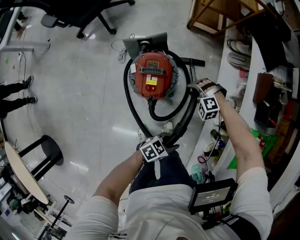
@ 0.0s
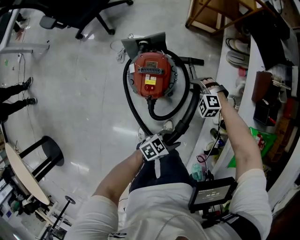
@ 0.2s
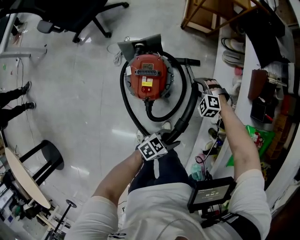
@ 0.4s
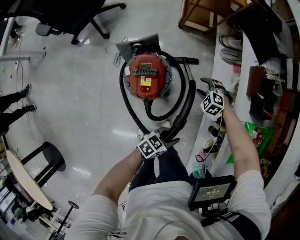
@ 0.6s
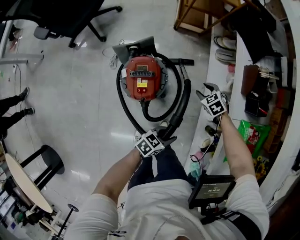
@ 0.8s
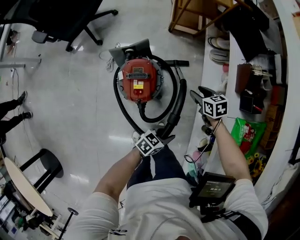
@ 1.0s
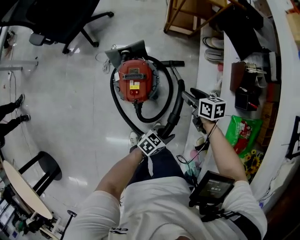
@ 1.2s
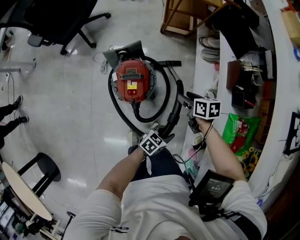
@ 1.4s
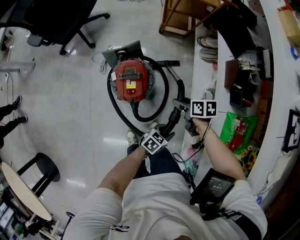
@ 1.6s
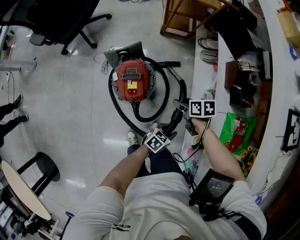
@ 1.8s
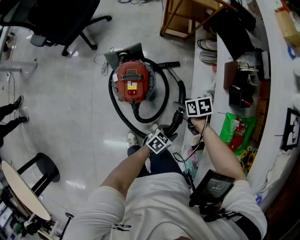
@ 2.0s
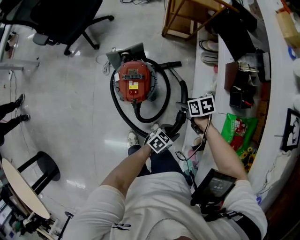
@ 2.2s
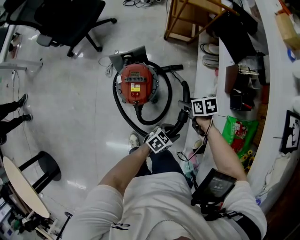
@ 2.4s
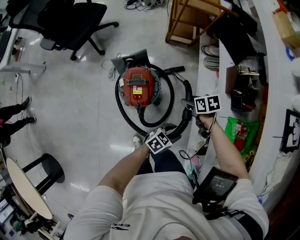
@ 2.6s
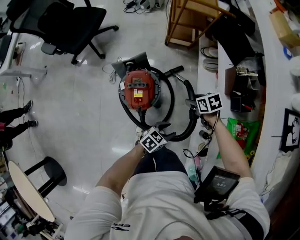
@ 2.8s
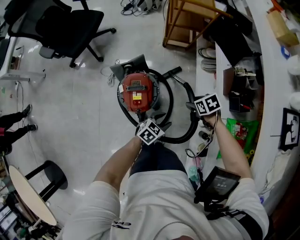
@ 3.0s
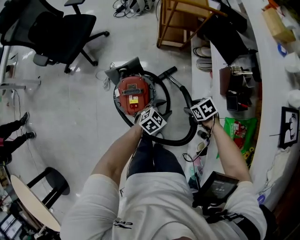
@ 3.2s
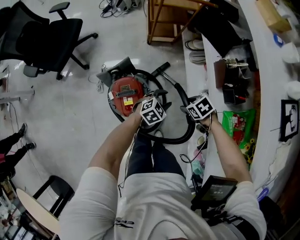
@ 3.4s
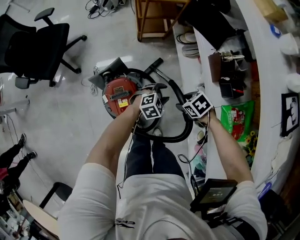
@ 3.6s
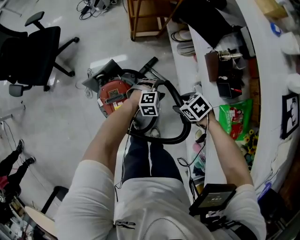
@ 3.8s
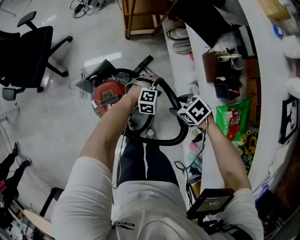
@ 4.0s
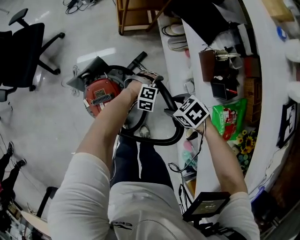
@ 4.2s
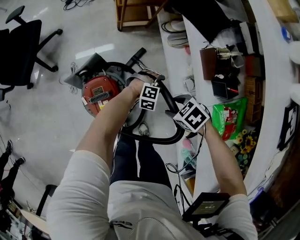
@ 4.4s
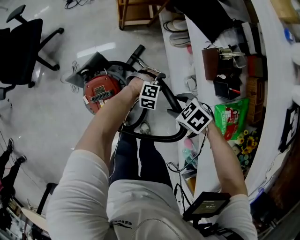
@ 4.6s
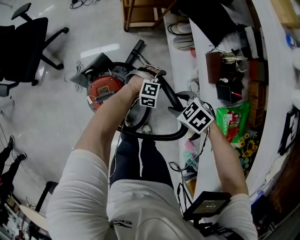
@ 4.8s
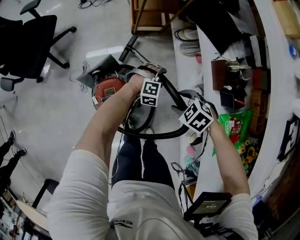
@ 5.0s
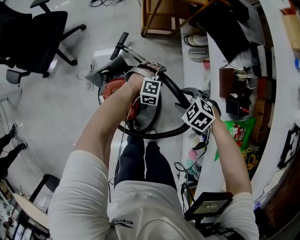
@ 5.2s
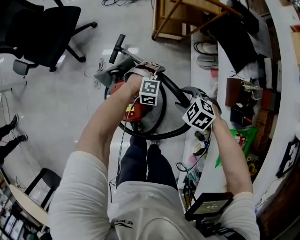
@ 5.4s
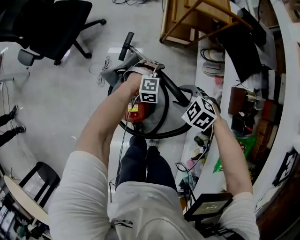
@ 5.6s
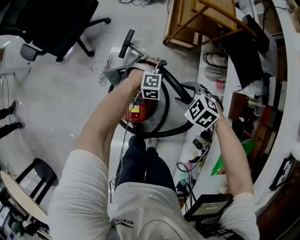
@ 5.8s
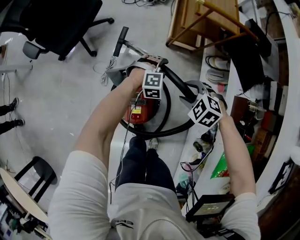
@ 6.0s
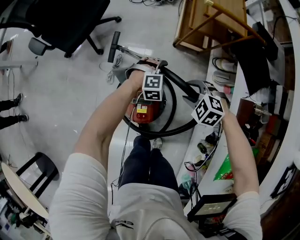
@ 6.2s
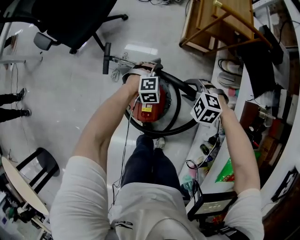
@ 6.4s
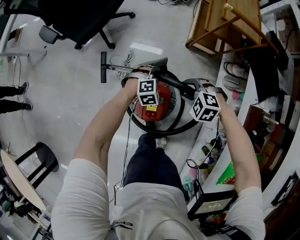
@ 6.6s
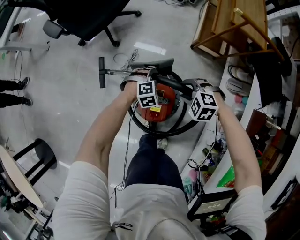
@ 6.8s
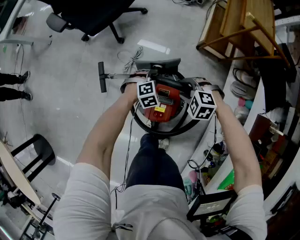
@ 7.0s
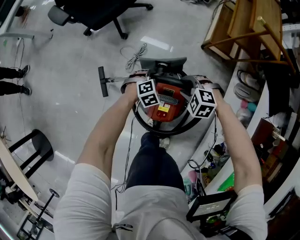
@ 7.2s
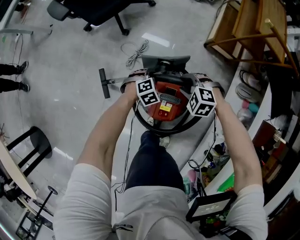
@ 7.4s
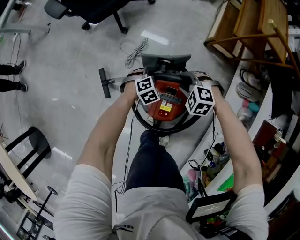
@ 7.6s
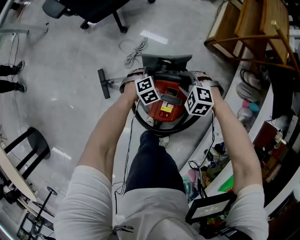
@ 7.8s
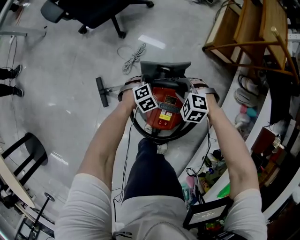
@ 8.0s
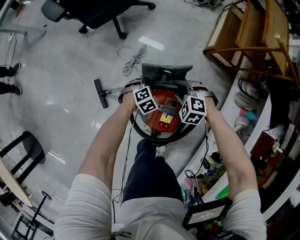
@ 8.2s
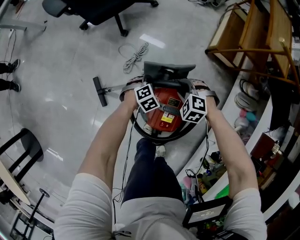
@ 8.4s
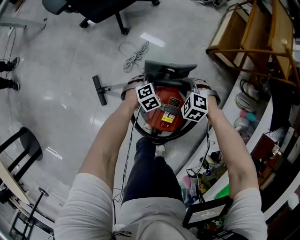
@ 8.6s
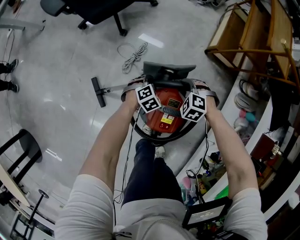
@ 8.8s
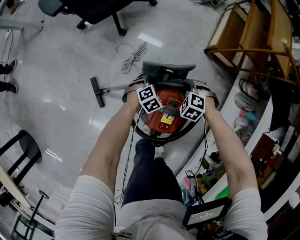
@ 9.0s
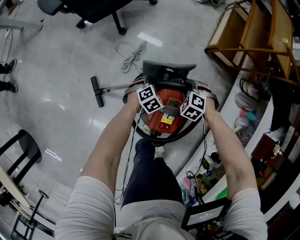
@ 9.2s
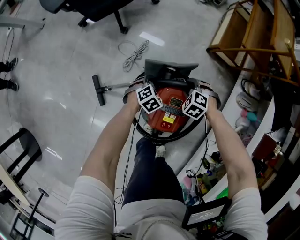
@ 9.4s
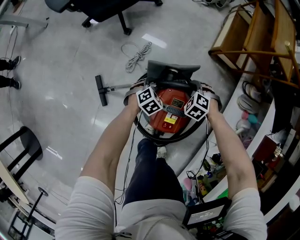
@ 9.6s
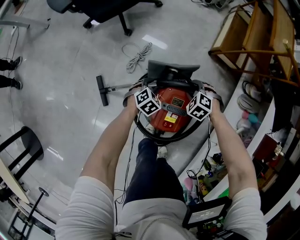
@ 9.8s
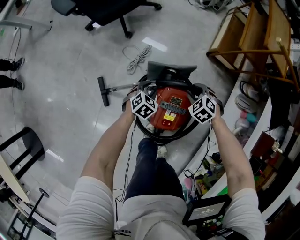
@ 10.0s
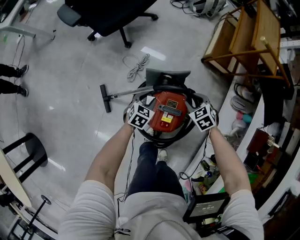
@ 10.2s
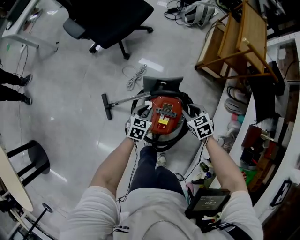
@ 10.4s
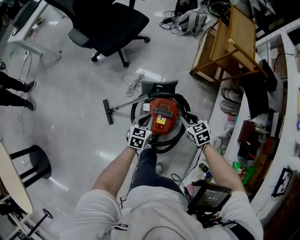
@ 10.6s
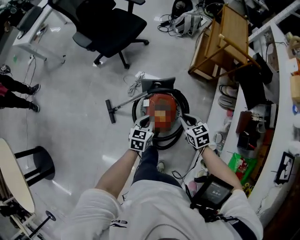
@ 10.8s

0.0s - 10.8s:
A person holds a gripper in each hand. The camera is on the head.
0.0s - 1.6s: The left gripper shifts by some 5 cm. The right gripper moves upward, roughly 15 cm, rolls clockwise, seen from behind, by approximately 120 degrees, and opens.
1.6s - 3.0s: The right gripper ends up about 5 cm from where it was, and changes its angle by about 30 degrees, while the left gripper moves roughly 10 cm.
3.0s - 4.6s: The left gripper moves about 25 cm, and twists some 70 degrees clockwise, seen from behind.
4.6s - 6.2s: The left gripper ends up about 30 cm from where it was, and swivels roughly 30 degrees. Meanwhile the right gripper shifts by about 25 cm, and rolls counterclockwise, seen from behind, by roughly 50 degrees.
6.2s - 7.8s: Both grippers move to the left and downward, roughly 25 cm. The left gripper rotates approximately 40 degrees. Meanwhile the right gripper rotates approximately 20 degrees.
7.8s - 9.2s: The left gripper is displaced downward by approximately 5 cm. Meanwhile the right gripper travels downward by roughly 10 cm.
9.2s - 10.8s: Both grippers move upward, some 30 cm. The left gripper tips its fingers upward by some 30 degrees, and closes up. Meanwhile the right gripper rotates around the line of its fingers by some 50 degrees, clockwise from behind, and closes.

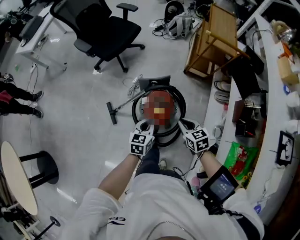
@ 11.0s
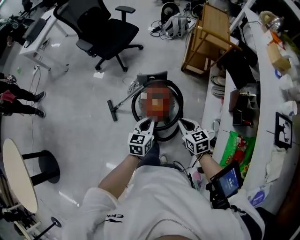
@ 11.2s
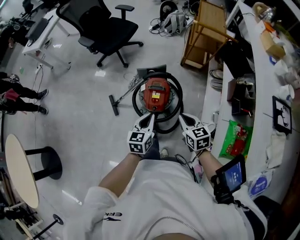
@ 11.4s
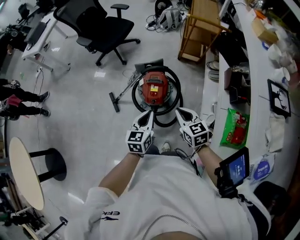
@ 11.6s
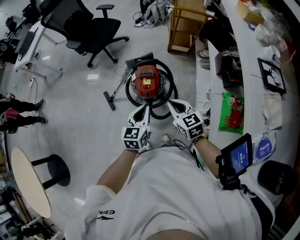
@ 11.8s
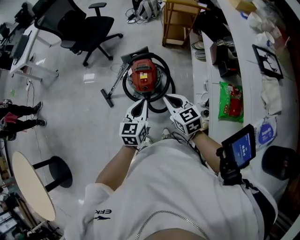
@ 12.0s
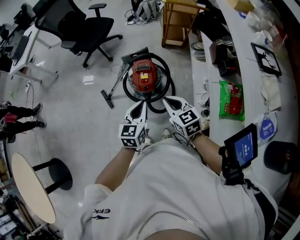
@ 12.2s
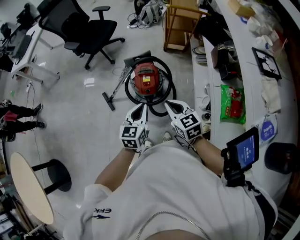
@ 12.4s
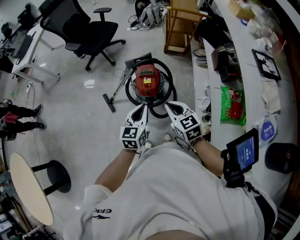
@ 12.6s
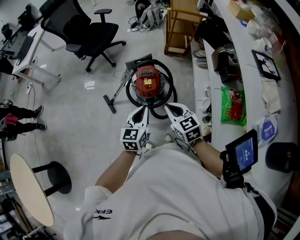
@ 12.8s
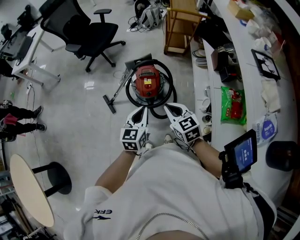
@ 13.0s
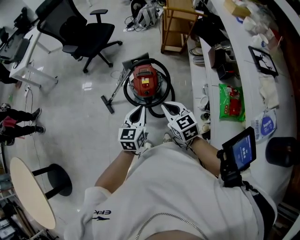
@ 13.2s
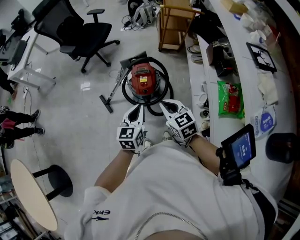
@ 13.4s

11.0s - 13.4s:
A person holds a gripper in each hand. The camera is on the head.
11.0s - 12.2s: The two grippers go about 25 cm backward and upward.
12.2s - 13.4s: The grippers make only small movements.

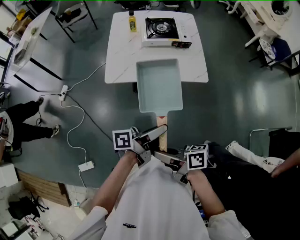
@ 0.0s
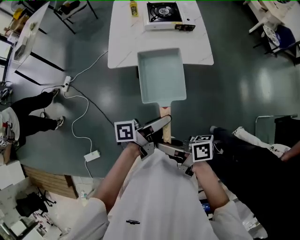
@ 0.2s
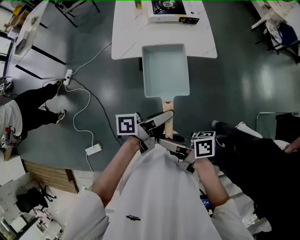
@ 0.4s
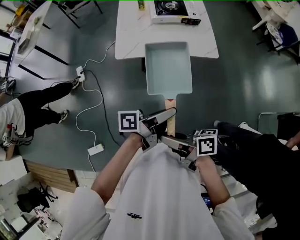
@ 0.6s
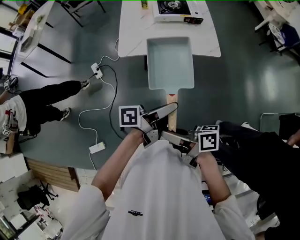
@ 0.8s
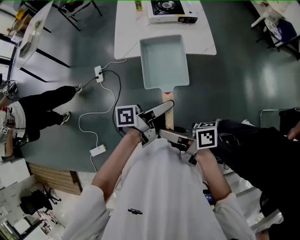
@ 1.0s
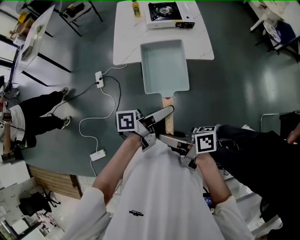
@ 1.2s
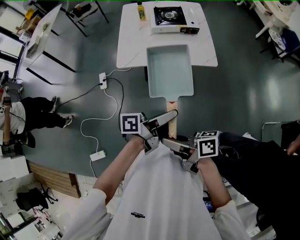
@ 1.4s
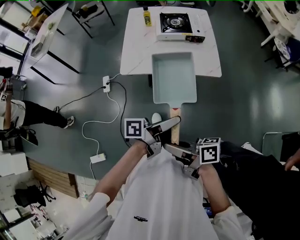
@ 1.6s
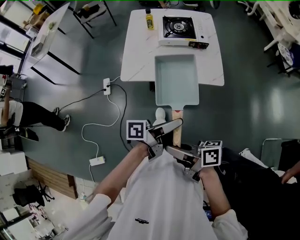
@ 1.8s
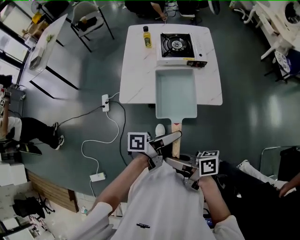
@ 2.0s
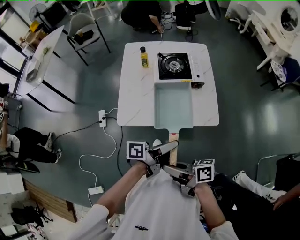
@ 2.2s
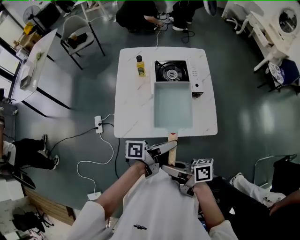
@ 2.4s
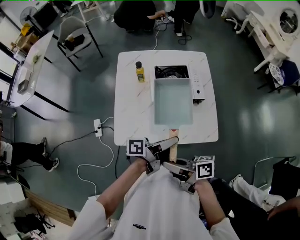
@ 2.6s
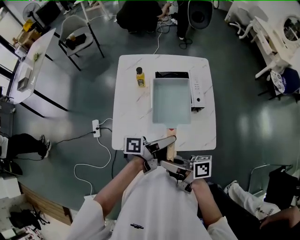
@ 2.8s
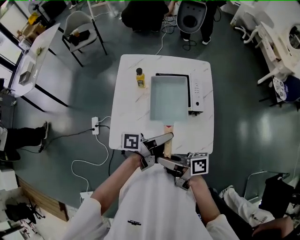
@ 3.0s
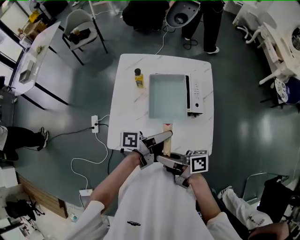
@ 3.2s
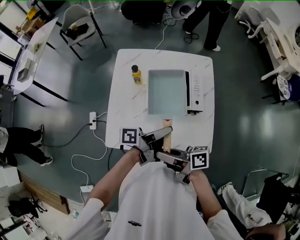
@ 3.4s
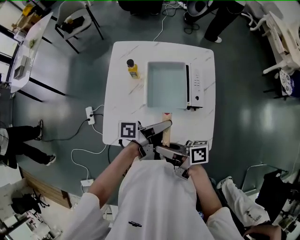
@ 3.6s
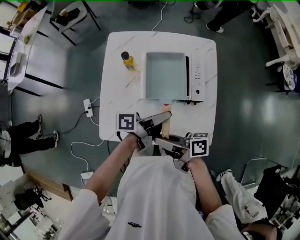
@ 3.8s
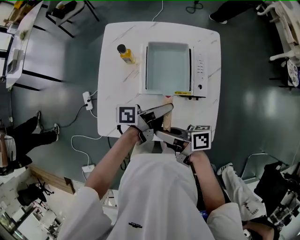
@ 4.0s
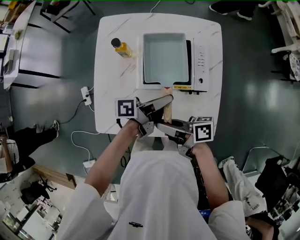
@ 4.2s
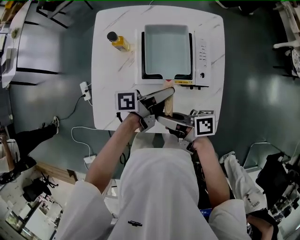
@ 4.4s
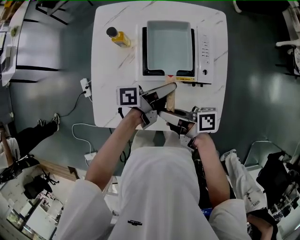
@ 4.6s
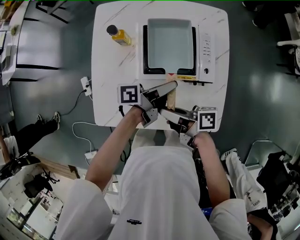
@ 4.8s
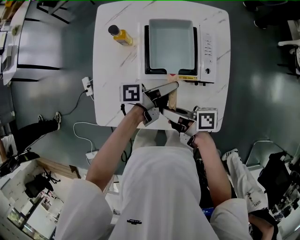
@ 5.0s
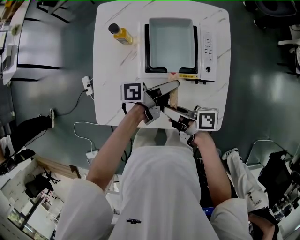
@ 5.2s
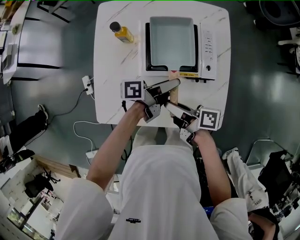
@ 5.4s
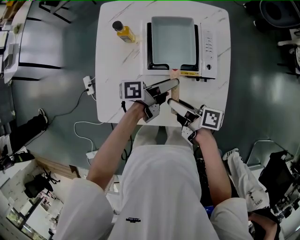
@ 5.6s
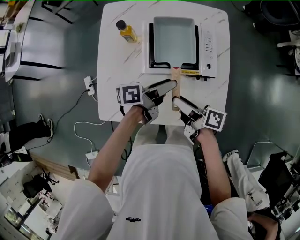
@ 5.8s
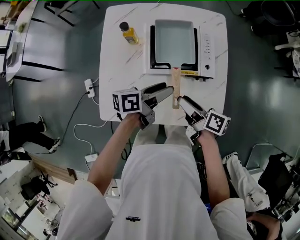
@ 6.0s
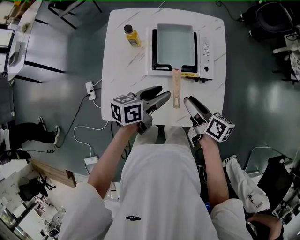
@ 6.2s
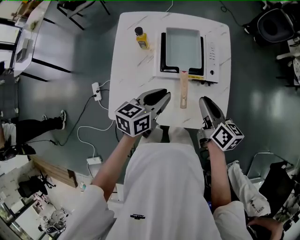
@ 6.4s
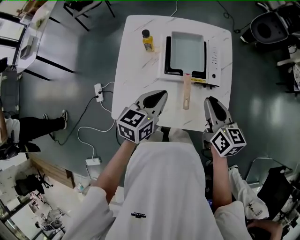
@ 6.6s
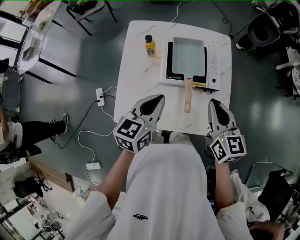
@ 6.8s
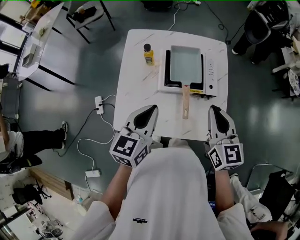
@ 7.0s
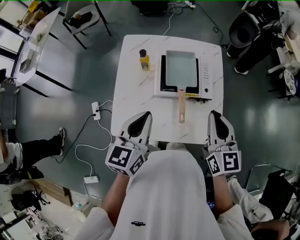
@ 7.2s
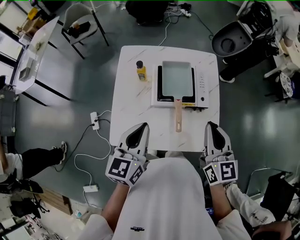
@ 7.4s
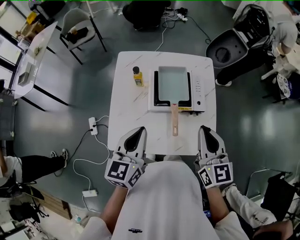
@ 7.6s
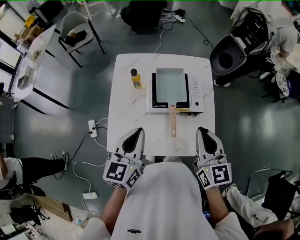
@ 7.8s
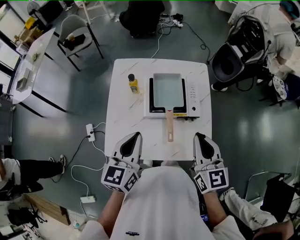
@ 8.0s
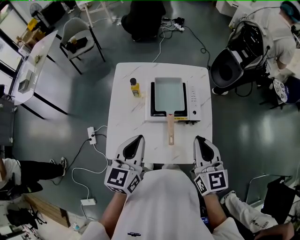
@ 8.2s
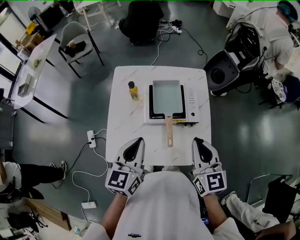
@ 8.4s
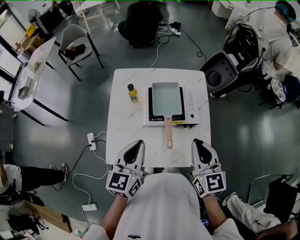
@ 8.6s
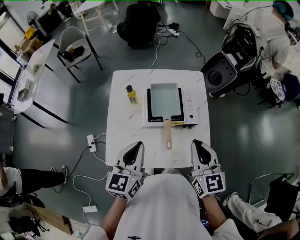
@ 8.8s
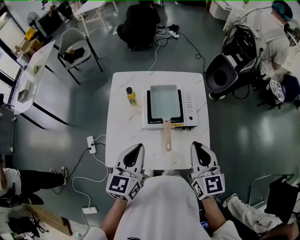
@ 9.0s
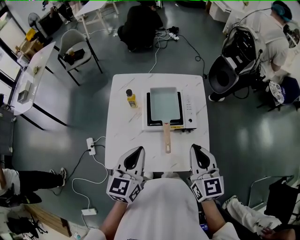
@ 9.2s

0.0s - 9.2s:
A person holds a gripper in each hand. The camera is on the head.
0.0s - 1.6s: The grippers make only small movements.
1.6s - 3.0s: The two grippers travel together, roughly 40 cm.
3.0s - 4.6s: The right gripper ends up some 25 cm from where it was. Meanwhile the left gripper ends up some 25 cm from where it was.
4.6s - 6.2s: The left gripper ends up some 10 cm from where it was, and rotates approximately 40 degrees. The right gripper changes place by approximately 10 cm, swivels some 40 degrees, and opens up.
6.2s - 7.6s: The left gripper moves upward and to the left, about 20 cm, swivels roughly 40 degrees, and closes its fingers; the right gripper moves upward, about 20 cm, rotates around the line of its fingers by approximately 50 degrees, counterclockwise from behind, and closes up.
7.6s - 9.2s: The grippers stay close to where they were, moving slightly.

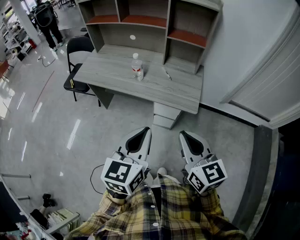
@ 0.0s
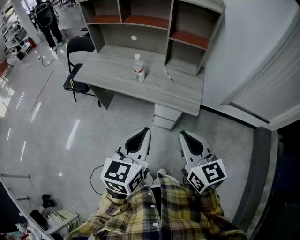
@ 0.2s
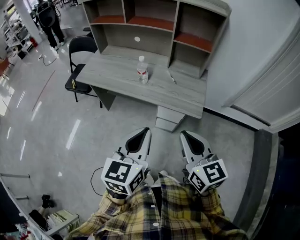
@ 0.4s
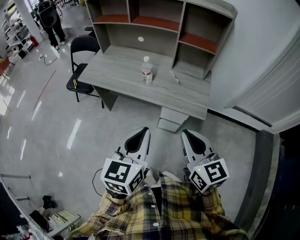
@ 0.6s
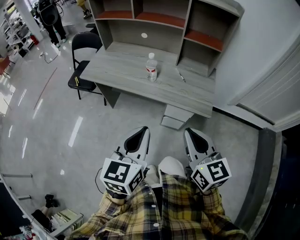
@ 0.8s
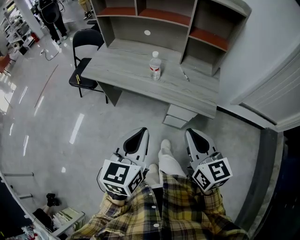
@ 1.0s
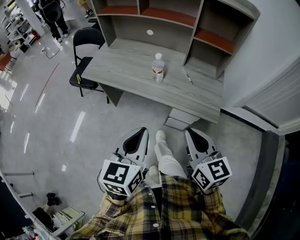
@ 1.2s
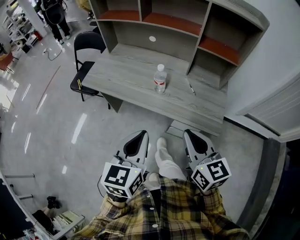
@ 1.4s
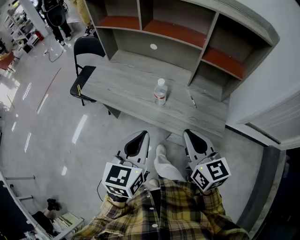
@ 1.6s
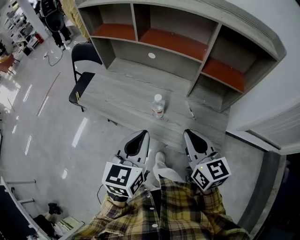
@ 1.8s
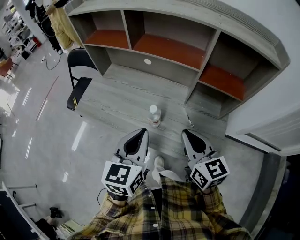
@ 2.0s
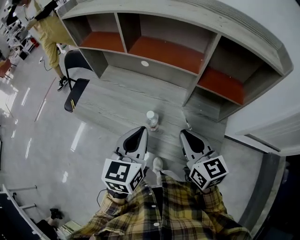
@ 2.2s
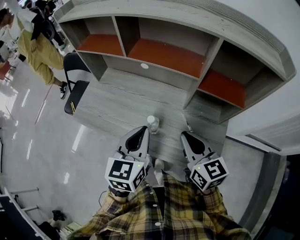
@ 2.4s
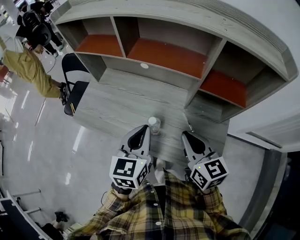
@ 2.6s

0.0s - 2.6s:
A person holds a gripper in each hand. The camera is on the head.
0.0s - 1.2s: The left gripper goes approximately 15 cm to the left and forward, while the right gripper moves forward and to the left, approximately 15 cm.
1.2s - 2.6s: The grippers both shift forward by some 35 cm.
